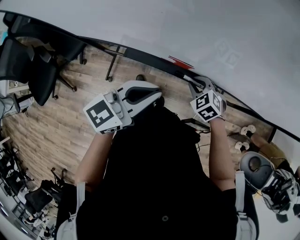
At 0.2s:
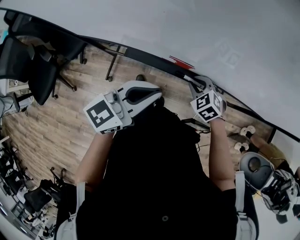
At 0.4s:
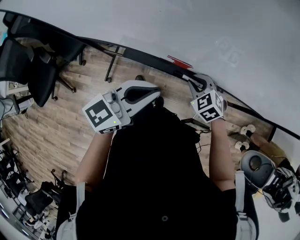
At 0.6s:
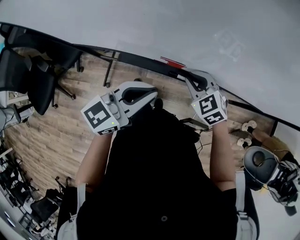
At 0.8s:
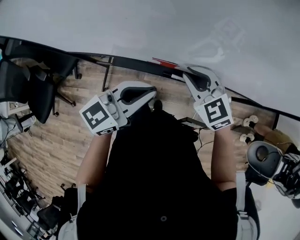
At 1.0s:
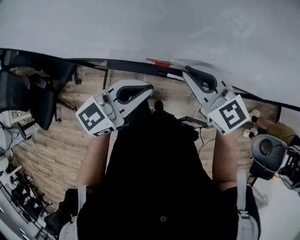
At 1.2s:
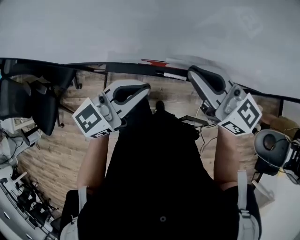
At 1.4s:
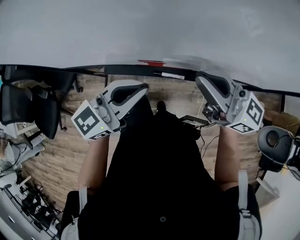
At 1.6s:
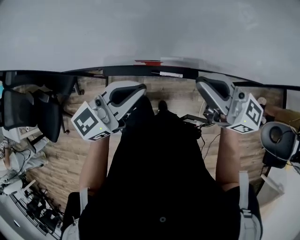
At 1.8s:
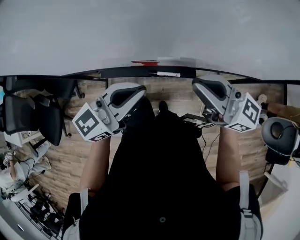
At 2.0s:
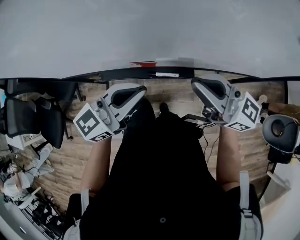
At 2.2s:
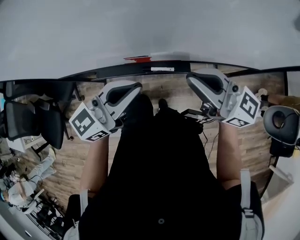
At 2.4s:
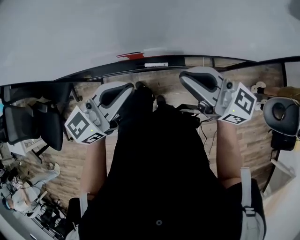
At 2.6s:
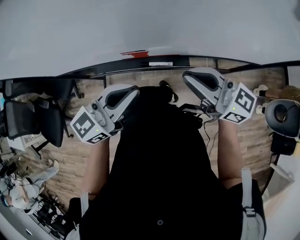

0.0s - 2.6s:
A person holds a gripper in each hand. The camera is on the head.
0.0s - 1.2s: The left gripper shifts by approximately 5 cm; the right gripper is displaced upward by approximately 30 cm, and angles its fingers upward, by some 60 degrees.
1.2s - 2.6s: The right gripper travels backward and to the right by about 10 cm. The left gripper ends up roughly 5 cm from where it was.

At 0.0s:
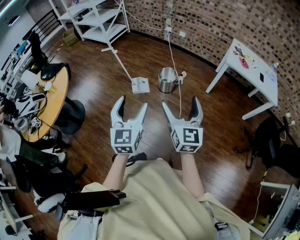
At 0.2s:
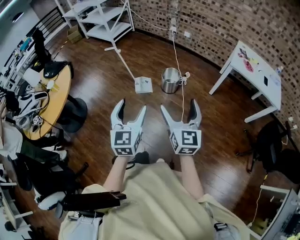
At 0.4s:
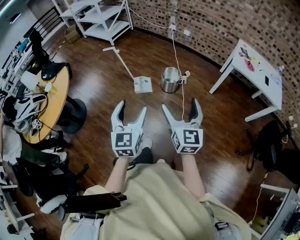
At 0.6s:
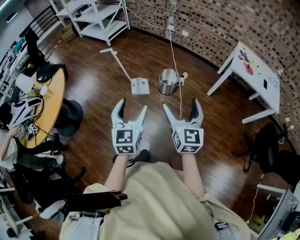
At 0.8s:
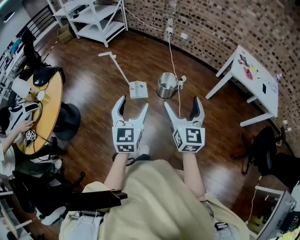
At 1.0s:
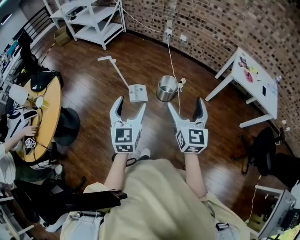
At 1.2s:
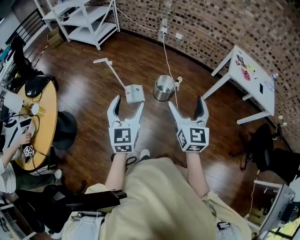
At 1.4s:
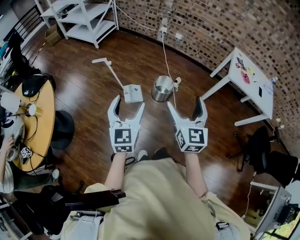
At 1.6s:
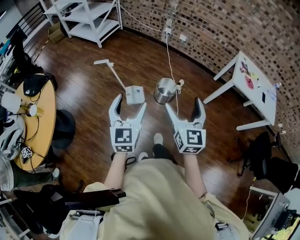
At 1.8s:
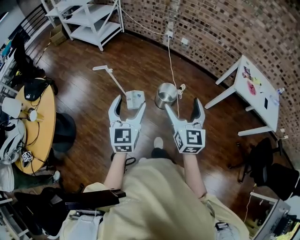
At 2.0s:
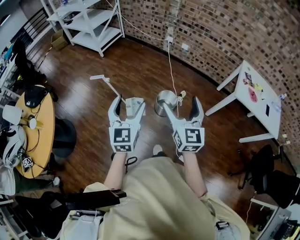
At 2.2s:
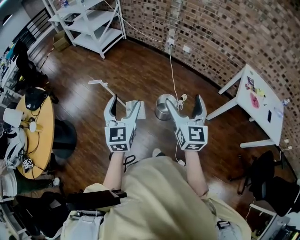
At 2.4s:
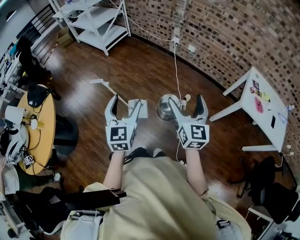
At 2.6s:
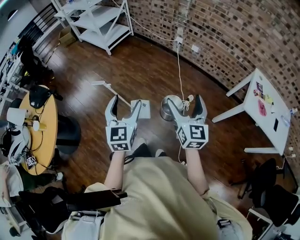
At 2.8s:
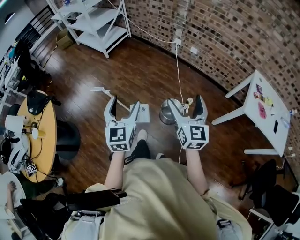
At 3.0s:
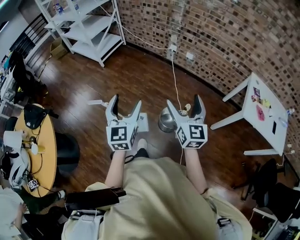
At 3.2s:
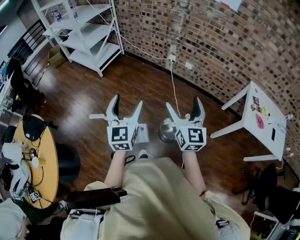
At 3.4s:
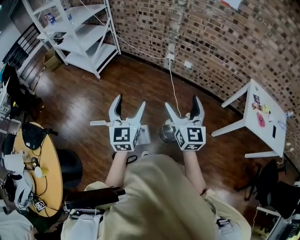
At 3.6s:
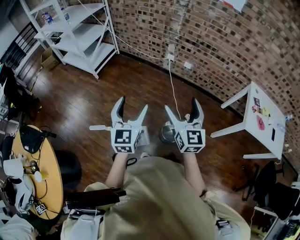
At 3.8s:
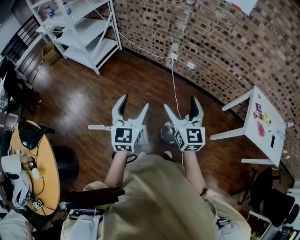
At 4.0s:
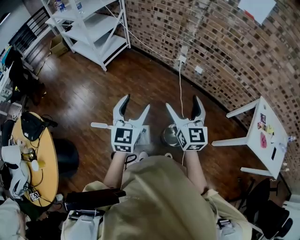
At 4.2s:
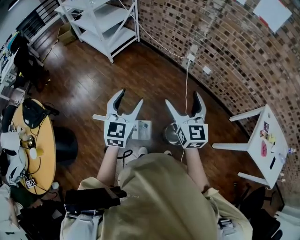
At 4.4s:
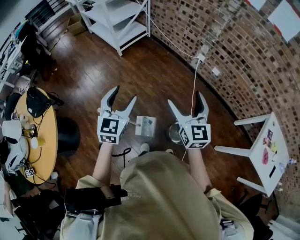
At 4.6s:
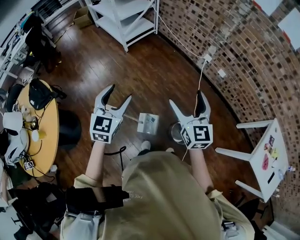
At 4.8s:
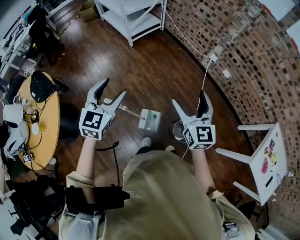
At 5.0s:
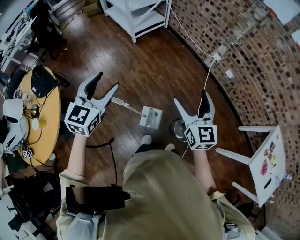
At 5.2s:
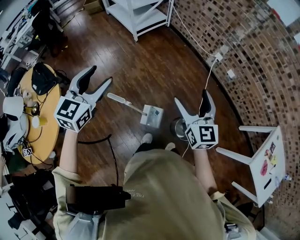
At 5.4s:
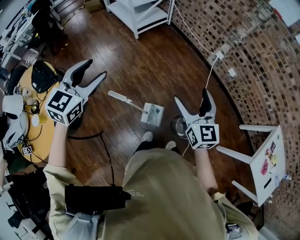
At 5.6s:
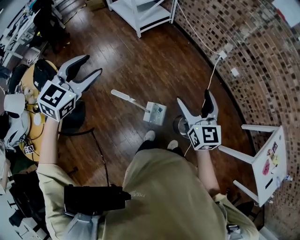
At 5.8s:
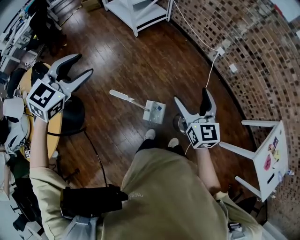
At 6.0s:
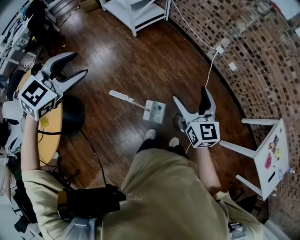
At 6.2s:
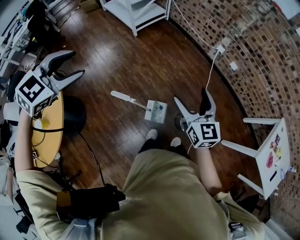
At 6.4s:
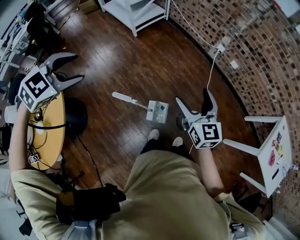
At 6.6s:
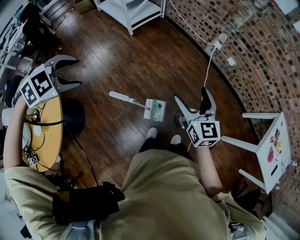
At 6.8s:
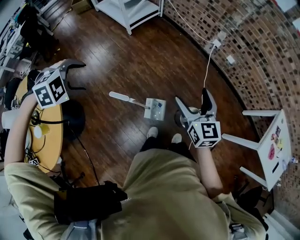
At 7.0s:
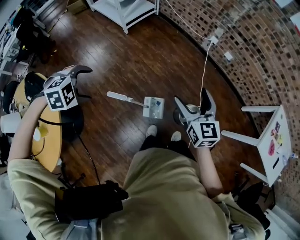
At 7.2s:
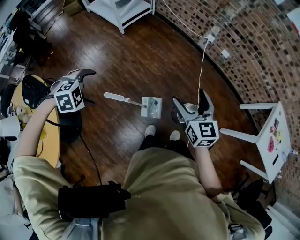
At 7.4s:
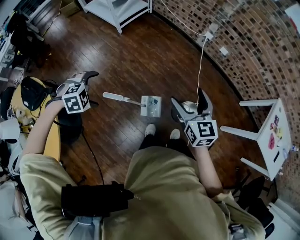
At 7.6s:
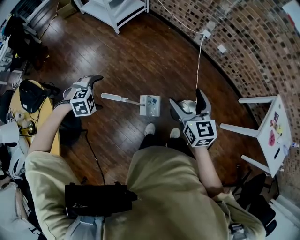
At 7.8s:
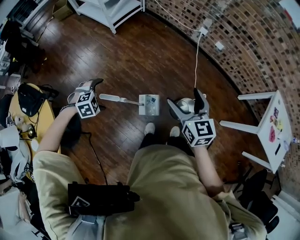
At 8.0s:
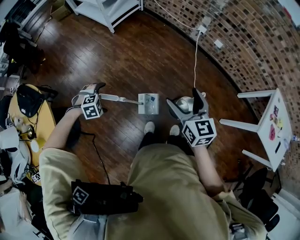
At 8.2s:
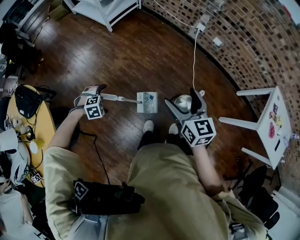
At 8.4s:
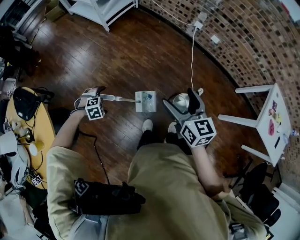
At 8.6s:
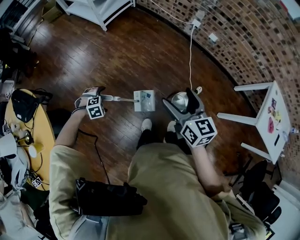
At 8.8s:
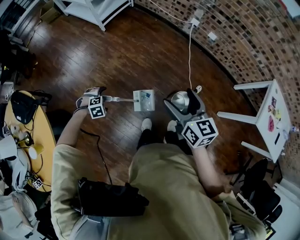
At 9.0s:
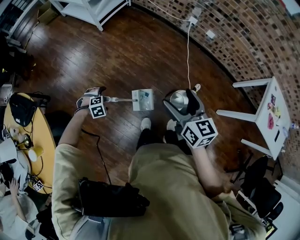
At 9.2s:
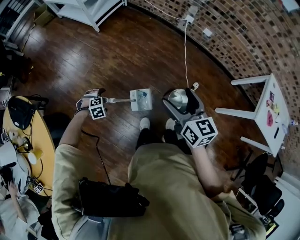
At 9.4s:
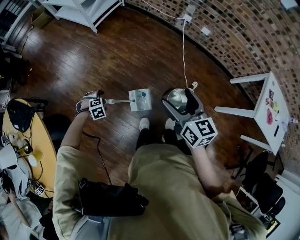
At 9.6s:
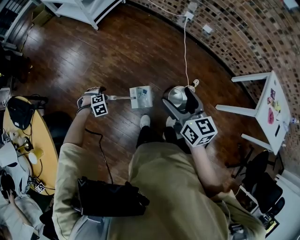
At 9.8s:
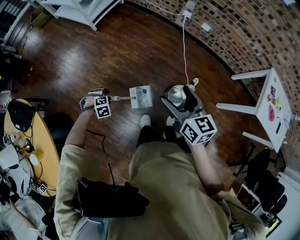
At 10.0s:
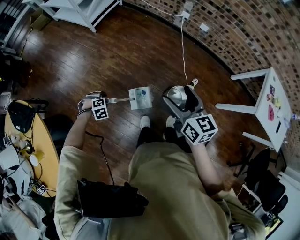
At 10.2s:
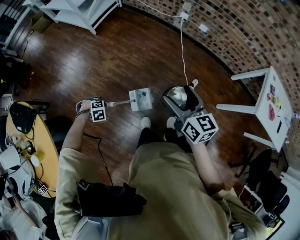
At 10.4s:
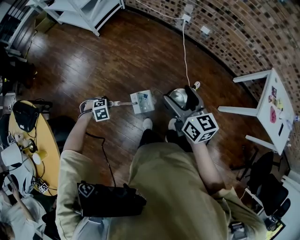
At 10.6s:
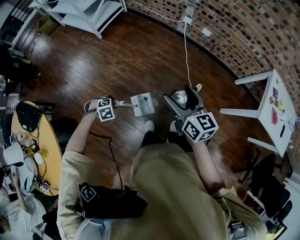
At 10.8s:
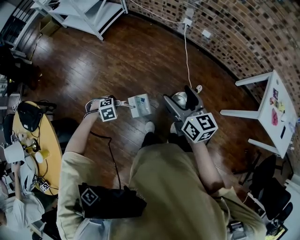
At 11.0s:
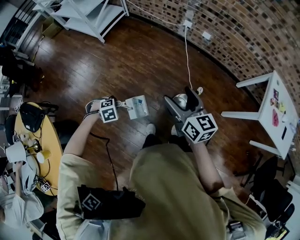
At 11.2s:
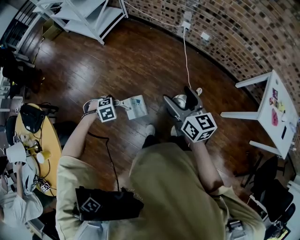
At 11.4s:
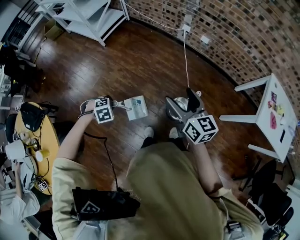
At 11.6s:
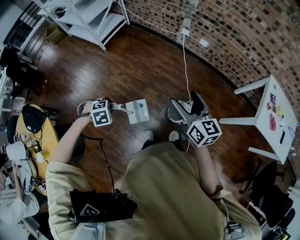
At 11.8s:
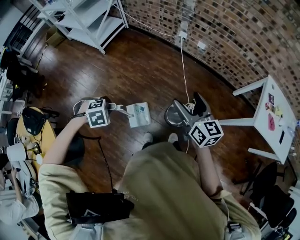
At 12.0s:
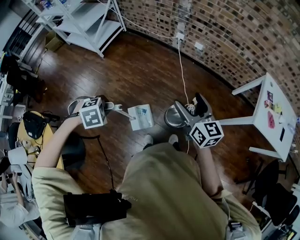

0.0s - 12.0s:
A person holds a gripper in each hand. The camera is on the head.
0.0s - 1.6s: Both grippers travel together forward, approximately 25 cm.
1.6s - 3.0s: Both grippers move forward, some 30 cm.
3.0s - 4.4s: Both grippers travel together forward and to the left, roughly 25 cm.
4.4s - 6.0s: The right gripper goes roughly 10 cm to the left; the left gripper moves to the left and upward, roughly 25 cm, and changes its angle by approximately 30 degrees.
6.0s - 7.6s: The left gripper is displaced downward by some 30 cm, angles its fingers downward, by about 40 degrees, and opens up. Meanwhile the right gripper shifts some 5 cm downward.
7.6s - 9.0s: The left gripper heads downward, covering roughly 20 cm.
9.0s - 10.4s: The left gripper shifts by roughly 5 cm, and closes up.
10.4s - 12.0s: The left gripper heads upward, covering approximately 25 cm; the right gripper changes place by about 15 cm.

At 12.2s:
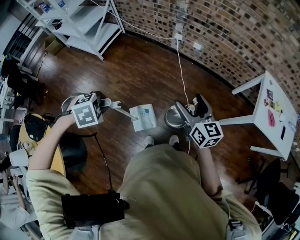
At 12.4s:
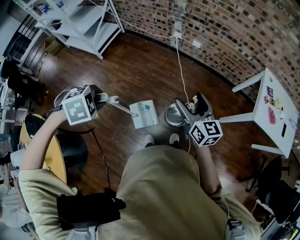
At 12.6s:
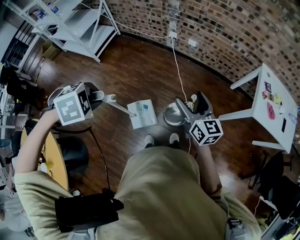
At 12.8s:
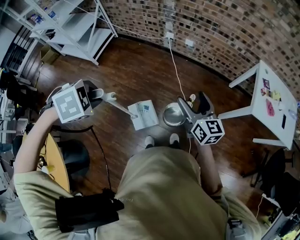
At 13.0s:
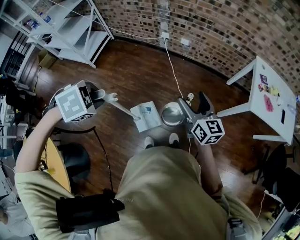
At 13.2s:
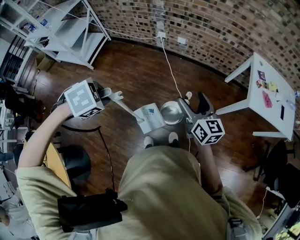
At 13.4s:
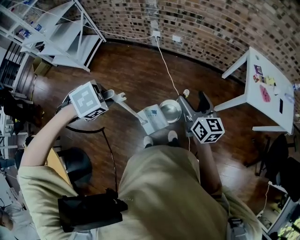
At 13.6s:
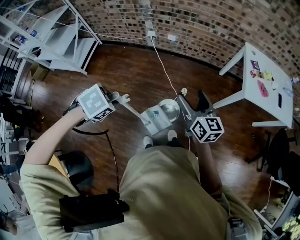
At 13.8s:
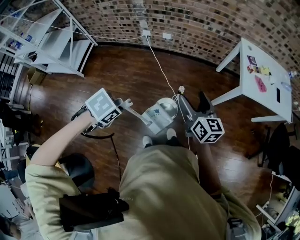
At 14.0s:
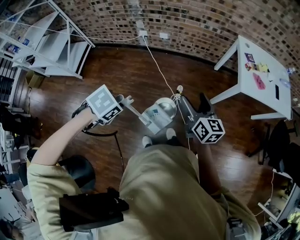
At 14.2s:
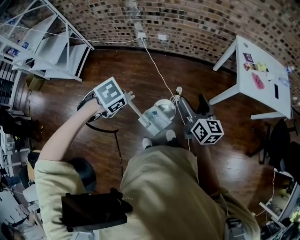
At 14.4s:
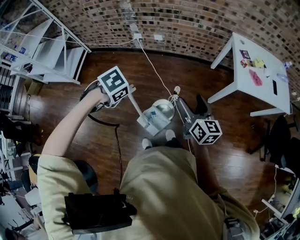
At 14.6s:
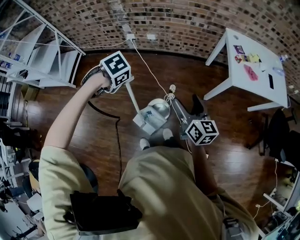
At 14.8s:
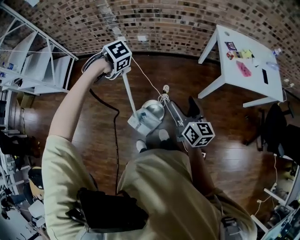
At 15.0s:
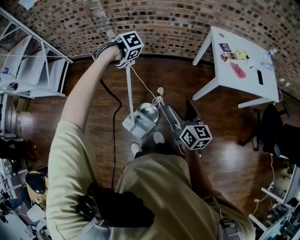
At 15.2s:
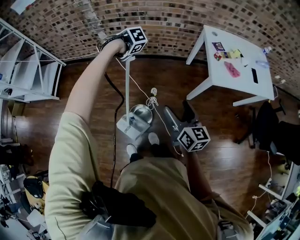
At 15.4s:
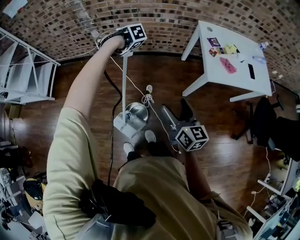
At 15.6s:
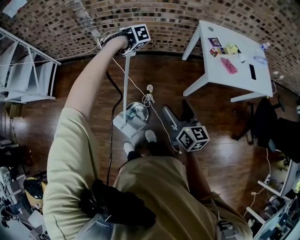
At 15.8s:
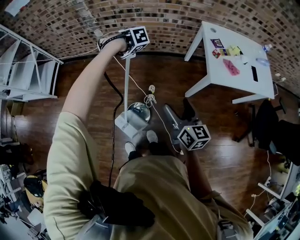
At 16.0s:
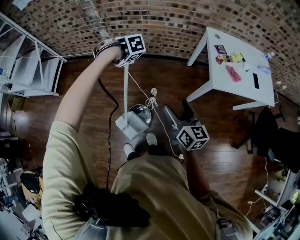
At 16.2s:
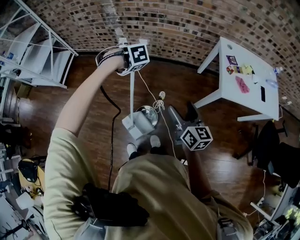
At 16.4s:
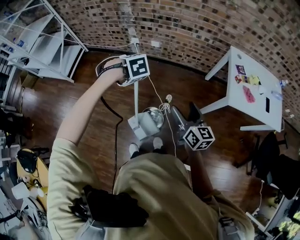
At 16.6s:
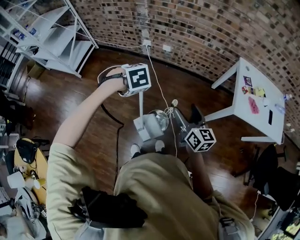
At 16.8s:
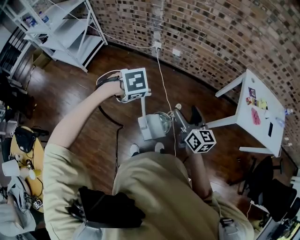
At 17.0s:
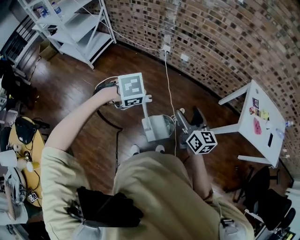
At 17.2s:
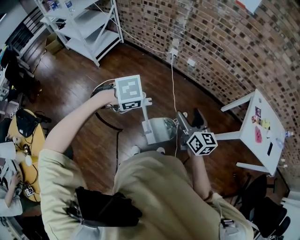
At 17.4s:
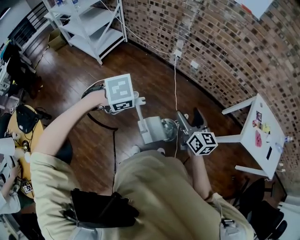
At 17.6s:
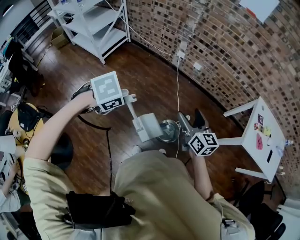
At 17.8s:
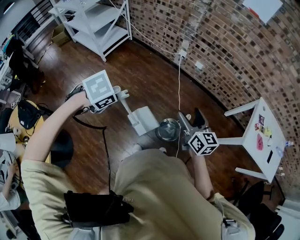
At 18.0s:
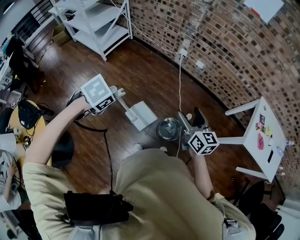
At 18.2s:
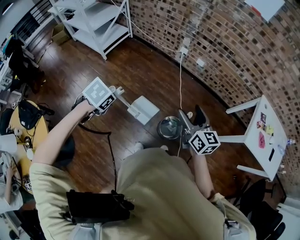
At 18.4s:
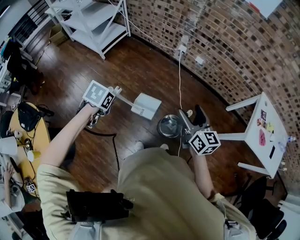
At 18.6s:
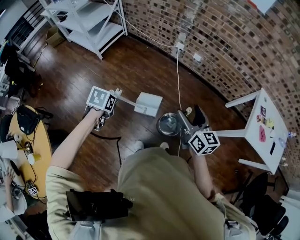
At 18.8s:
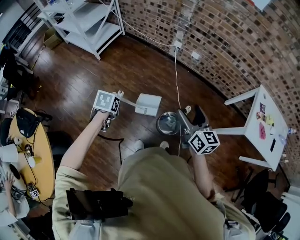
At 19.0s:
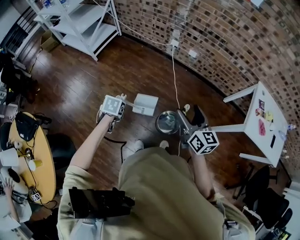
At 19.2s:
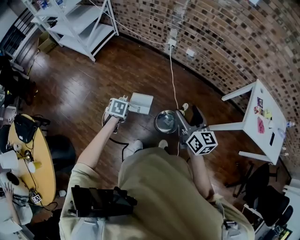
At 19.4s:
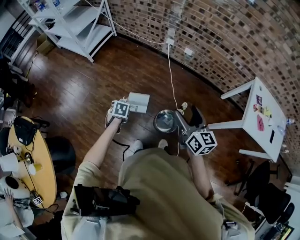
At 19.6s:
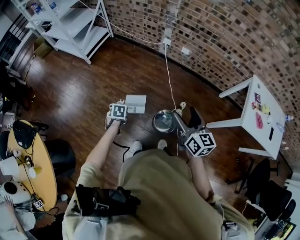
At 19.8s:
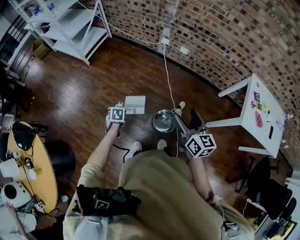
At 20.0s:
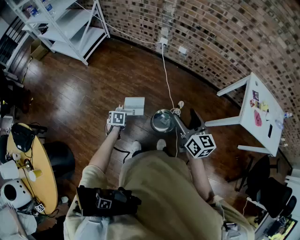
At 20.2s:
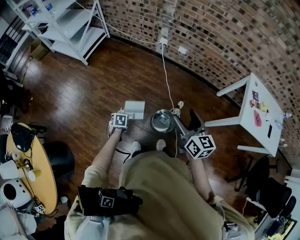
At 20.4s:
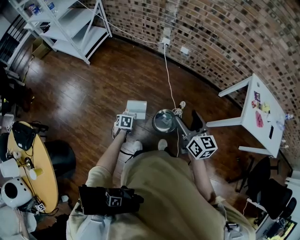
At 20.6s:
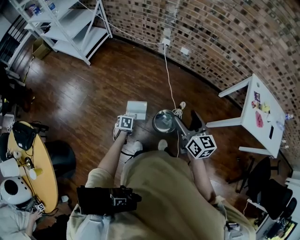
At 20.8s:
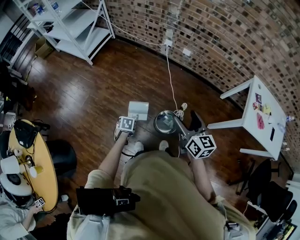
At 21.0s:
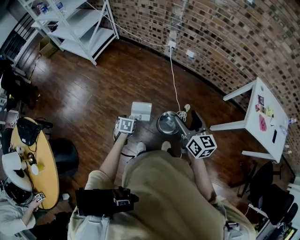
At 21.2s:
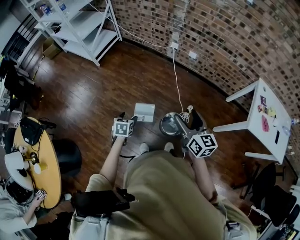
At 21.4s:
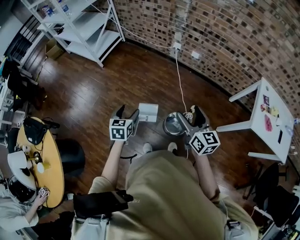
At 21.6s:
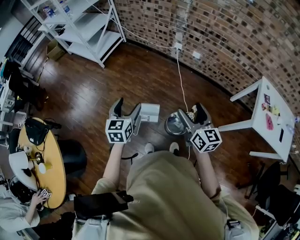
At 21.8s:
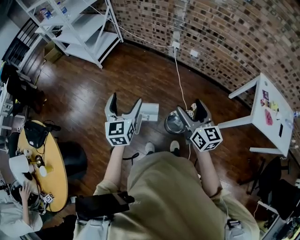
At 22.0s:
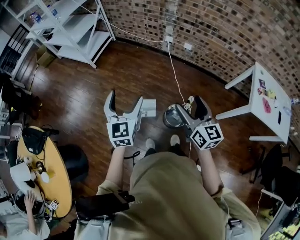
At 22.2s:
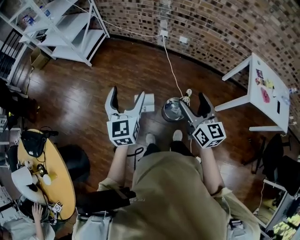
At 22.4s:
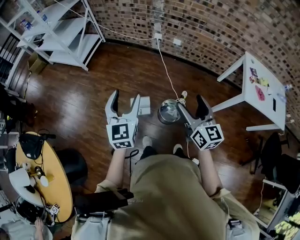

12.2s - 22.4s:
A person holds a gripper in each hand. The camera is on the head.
12.2s - 13.6s: The right gripper moves roughly 15 cm. Meanwhile the left gripper reaches some 10 cm upward, then returns.
13.6s - 15.2s: The left gripper moves some 40 cm, and changes its angle by about 30 degrees, while the right gripper ends up about 15 cm from where it was.
15.2s - 16.6s: The right gripper moves roughly 10 cm; the left gripper ends up some 20 cm from where it was.
16.6s - 18.0s: The left gripper ends up approximately 30 cm from where it was, and changes its angle by about 40 degrees; the right gripper shifts by some 20 cm.
18.0s - 19.4s: The left gripper heads downward, covering roughly 25 cm, and turns by some 30 degrees.
19.4s - 21.0s: The left gripper travels backward by about 5 cm, and opens its fingers.
21.0s - 22.4s: The left gripper travels upward by approximately 35 cm, and points its fingers some 60 degrees further upward. Meanwhile the right gripper goes approximately 10 cm backward and upward.
